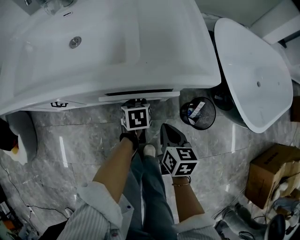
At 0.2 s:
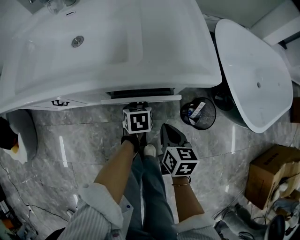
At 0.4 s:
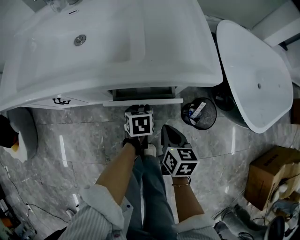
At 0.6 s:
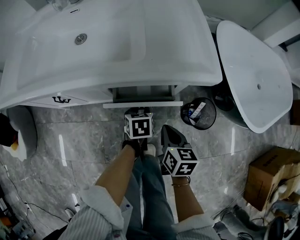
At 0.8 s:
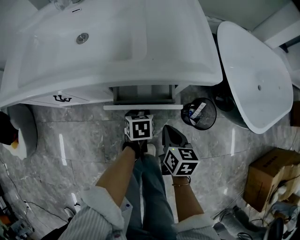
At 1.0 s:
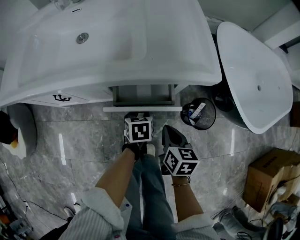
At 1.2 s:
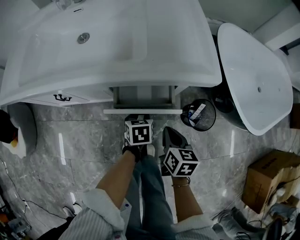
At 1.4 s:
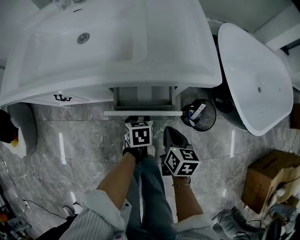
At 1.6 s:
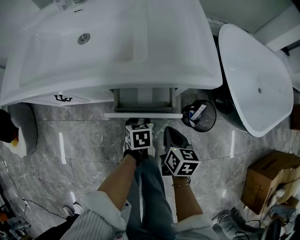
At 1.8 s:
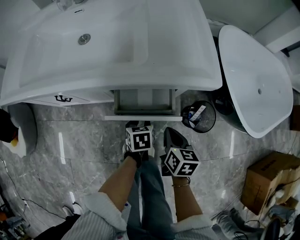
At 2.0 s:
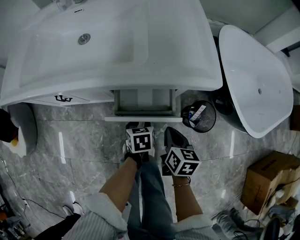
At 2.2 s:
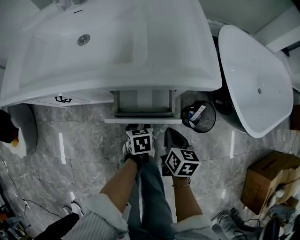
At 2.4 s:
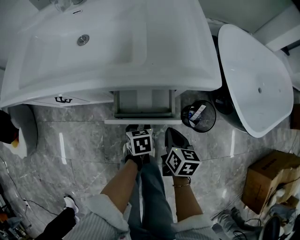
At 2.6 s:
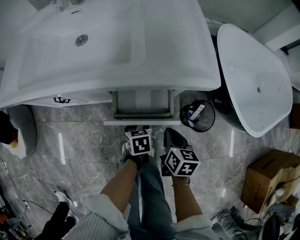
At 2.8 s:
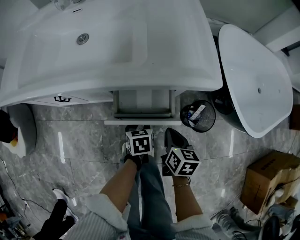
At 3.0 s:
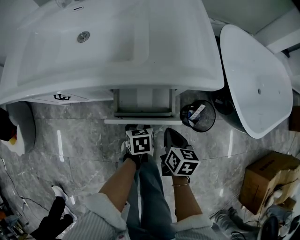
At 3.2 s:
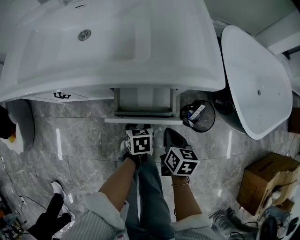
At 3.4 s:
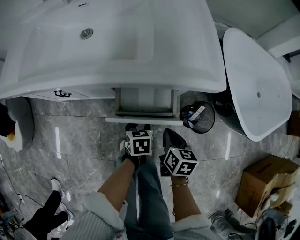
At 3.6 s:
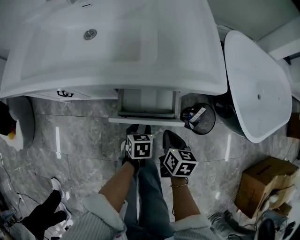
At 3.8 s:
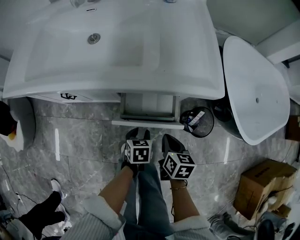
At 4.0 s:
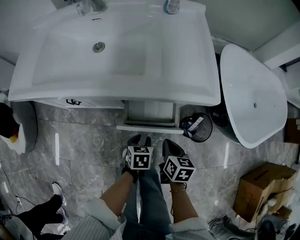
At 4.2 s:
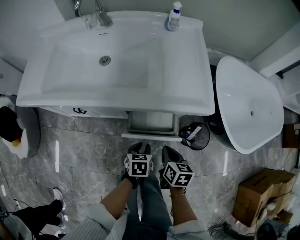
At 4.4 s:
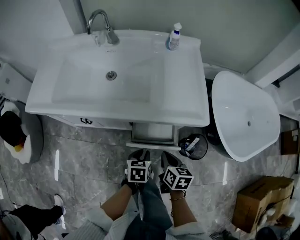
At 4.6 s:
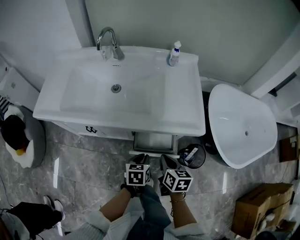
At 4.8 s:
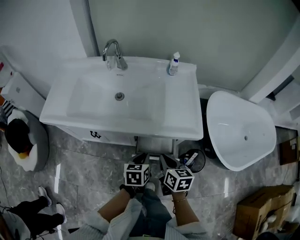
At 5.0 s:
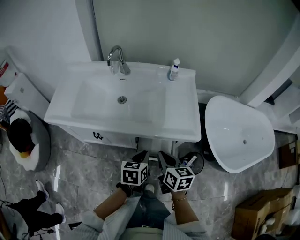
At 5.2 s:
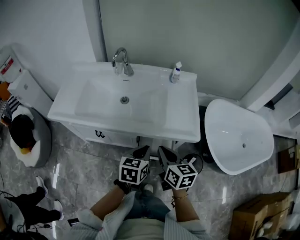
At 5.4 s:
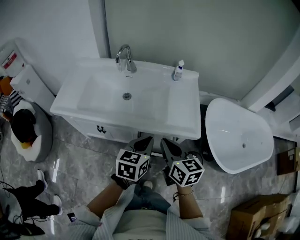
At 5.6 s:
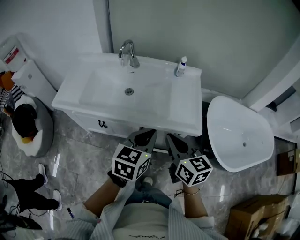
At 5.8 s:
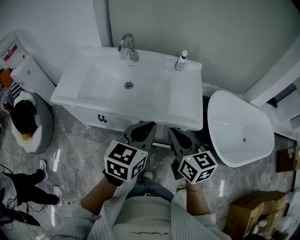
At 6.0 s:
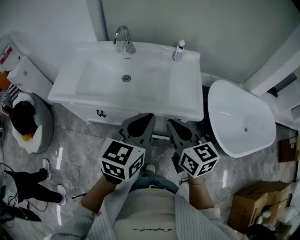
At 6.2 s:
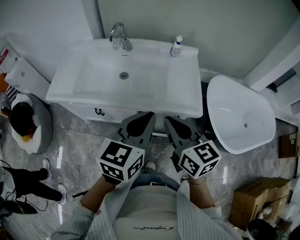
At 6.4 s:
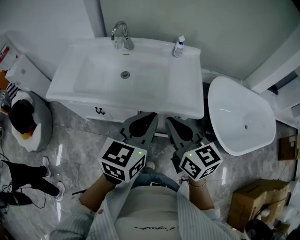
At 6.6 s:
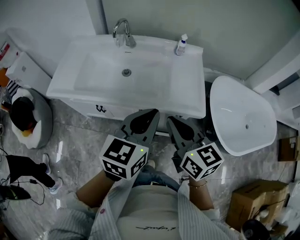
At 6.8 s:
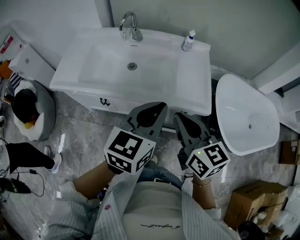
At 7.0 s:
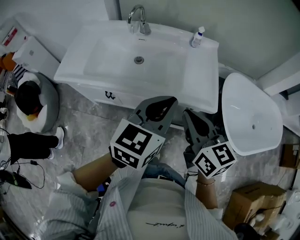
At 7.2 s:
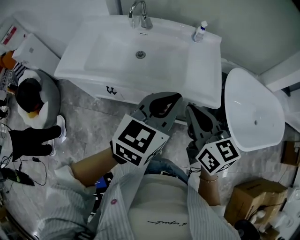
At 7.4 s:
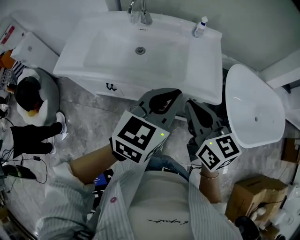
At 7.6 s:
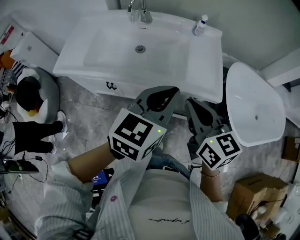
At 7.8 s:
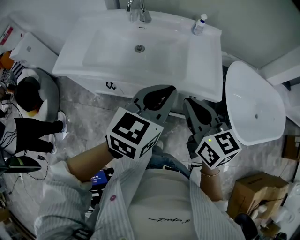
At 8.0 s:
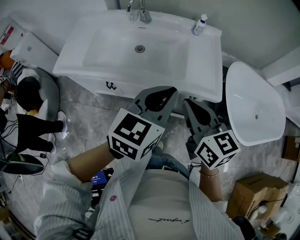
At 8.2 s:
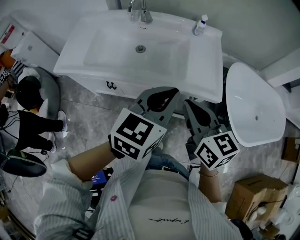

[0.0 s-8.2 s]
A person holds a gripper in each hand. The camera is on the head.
0.0 to 1.6 s: The left gripper goes some 10 cm backward.
1.6 to 3.2 s: There are only small adjustments of the grippers.
3.2 to 5.0 s: The two grippers go some 30 cm upward. The left gripper rotates approximately 20 degrees, and closes up; the right gripper changes its angle by some 20 degrees.
5.0 to 6.6 s: The grippers both shift upward by roughly 20 cm. The left gripper changes its angle by some 30 degrees; the right gripper swivels approximately 20 degrees.
6.6 to 8.2 s: The grippers move only a little.

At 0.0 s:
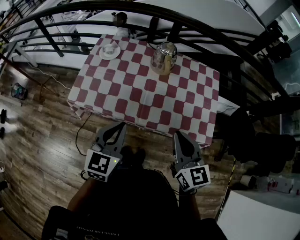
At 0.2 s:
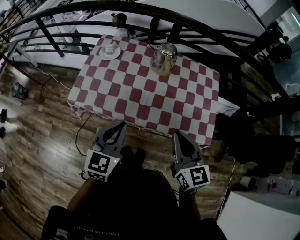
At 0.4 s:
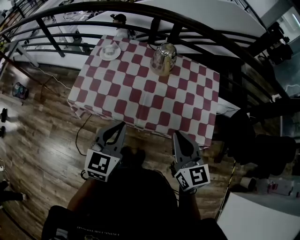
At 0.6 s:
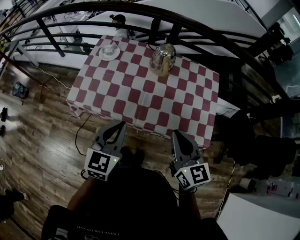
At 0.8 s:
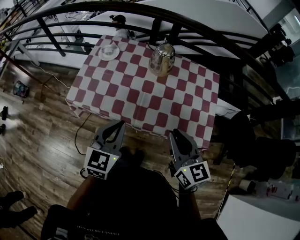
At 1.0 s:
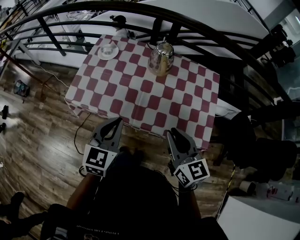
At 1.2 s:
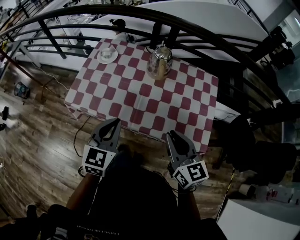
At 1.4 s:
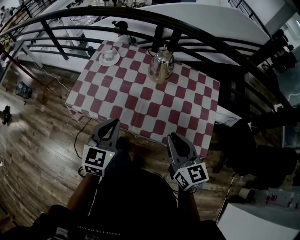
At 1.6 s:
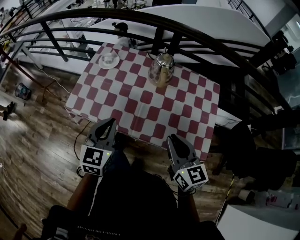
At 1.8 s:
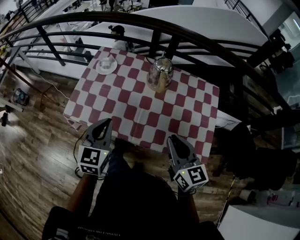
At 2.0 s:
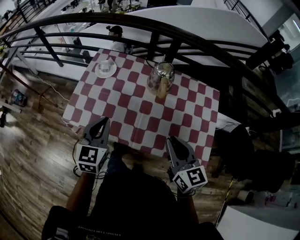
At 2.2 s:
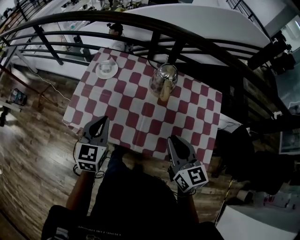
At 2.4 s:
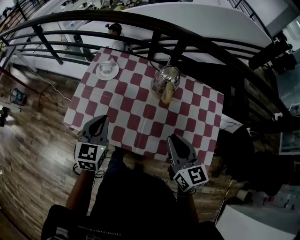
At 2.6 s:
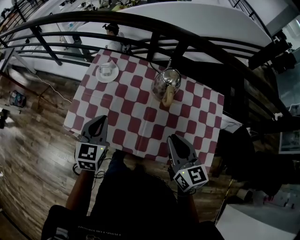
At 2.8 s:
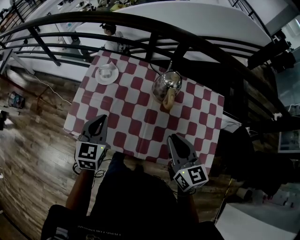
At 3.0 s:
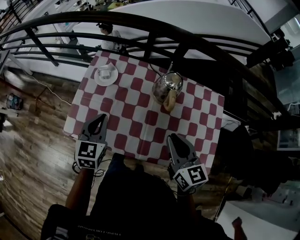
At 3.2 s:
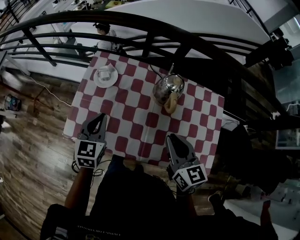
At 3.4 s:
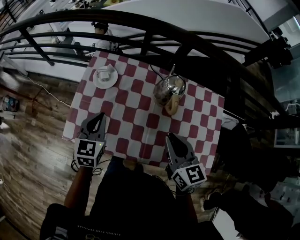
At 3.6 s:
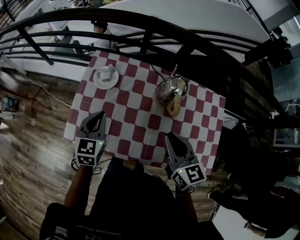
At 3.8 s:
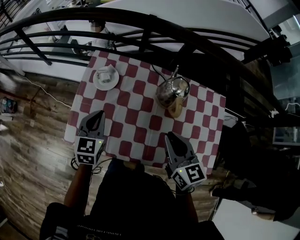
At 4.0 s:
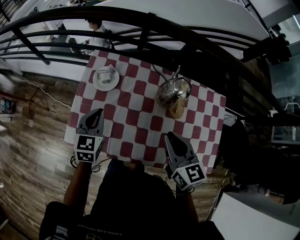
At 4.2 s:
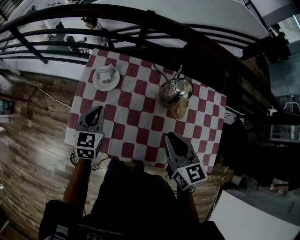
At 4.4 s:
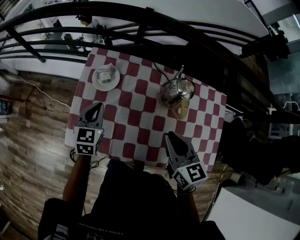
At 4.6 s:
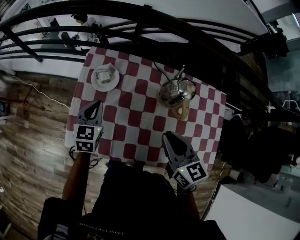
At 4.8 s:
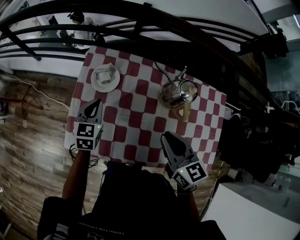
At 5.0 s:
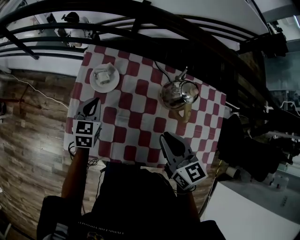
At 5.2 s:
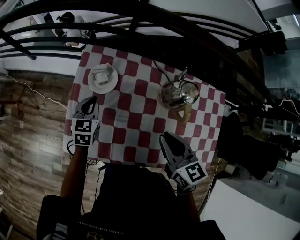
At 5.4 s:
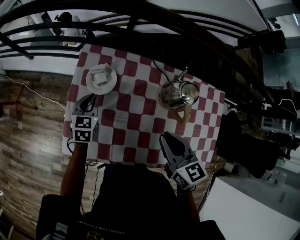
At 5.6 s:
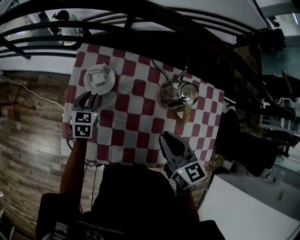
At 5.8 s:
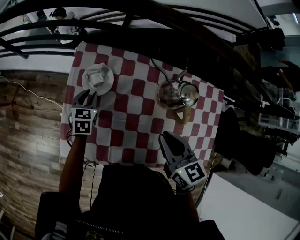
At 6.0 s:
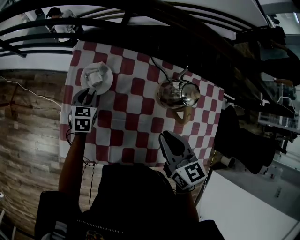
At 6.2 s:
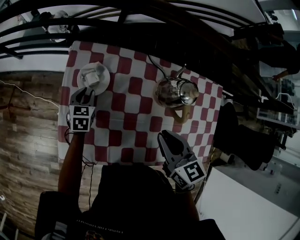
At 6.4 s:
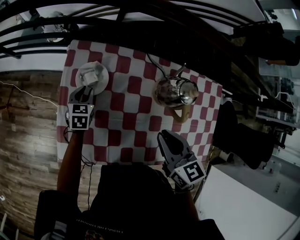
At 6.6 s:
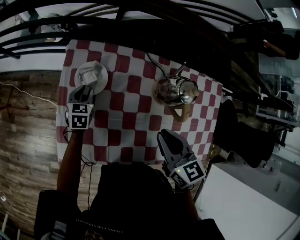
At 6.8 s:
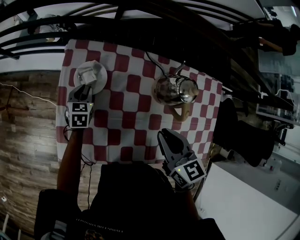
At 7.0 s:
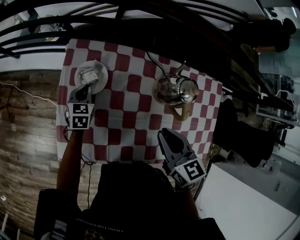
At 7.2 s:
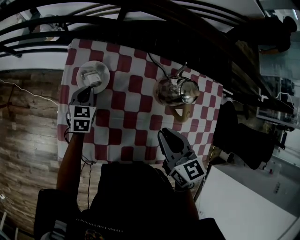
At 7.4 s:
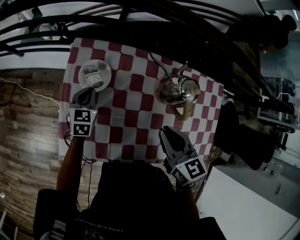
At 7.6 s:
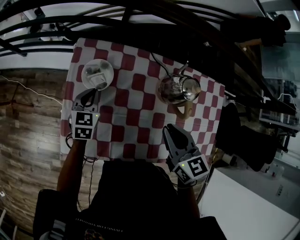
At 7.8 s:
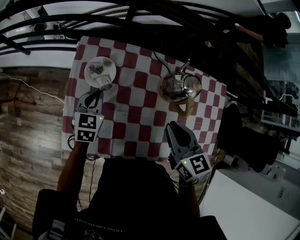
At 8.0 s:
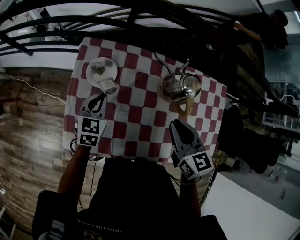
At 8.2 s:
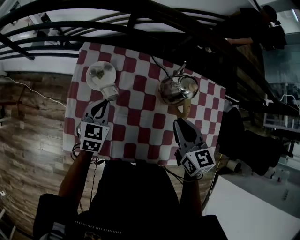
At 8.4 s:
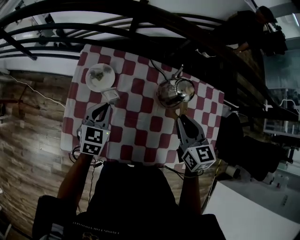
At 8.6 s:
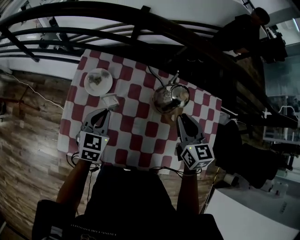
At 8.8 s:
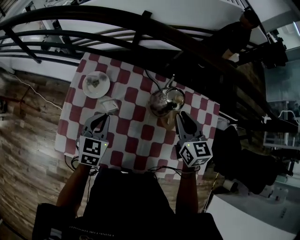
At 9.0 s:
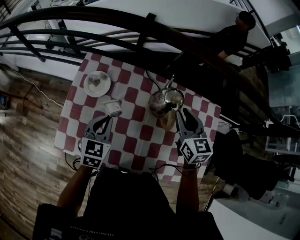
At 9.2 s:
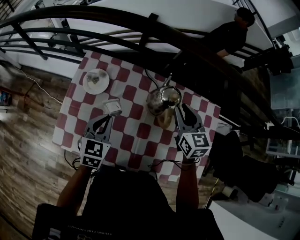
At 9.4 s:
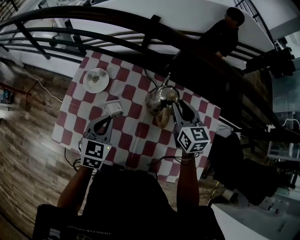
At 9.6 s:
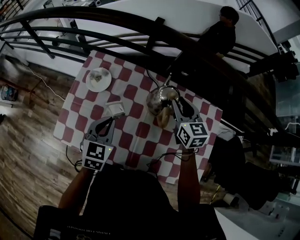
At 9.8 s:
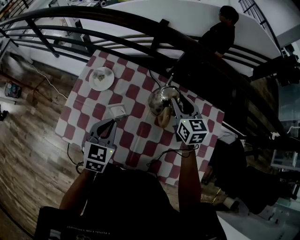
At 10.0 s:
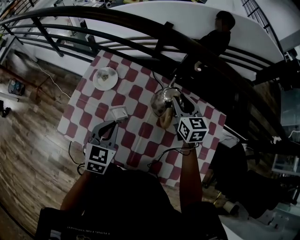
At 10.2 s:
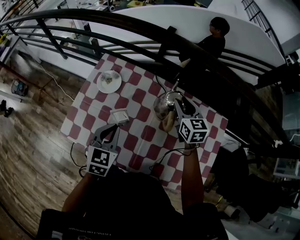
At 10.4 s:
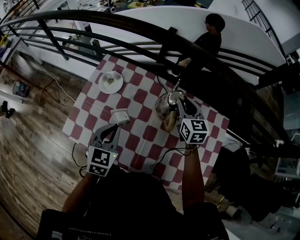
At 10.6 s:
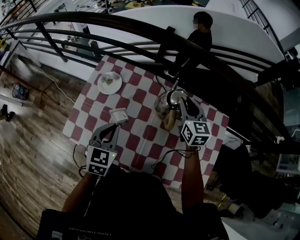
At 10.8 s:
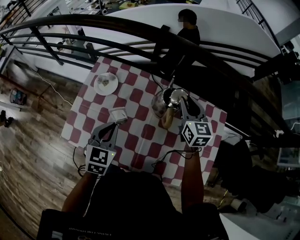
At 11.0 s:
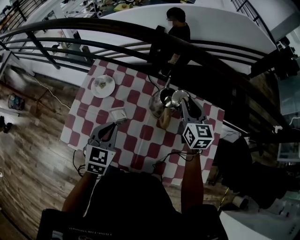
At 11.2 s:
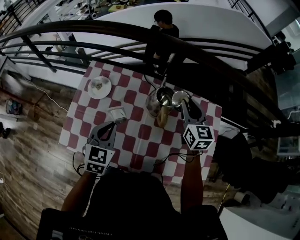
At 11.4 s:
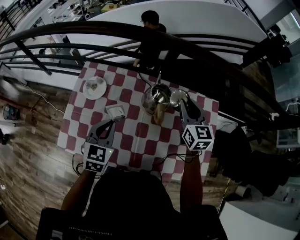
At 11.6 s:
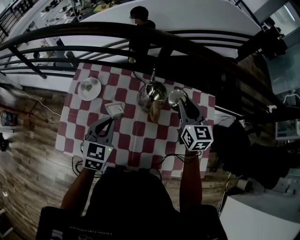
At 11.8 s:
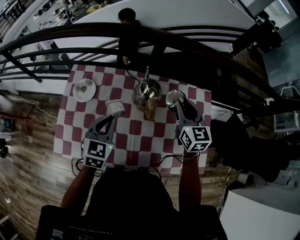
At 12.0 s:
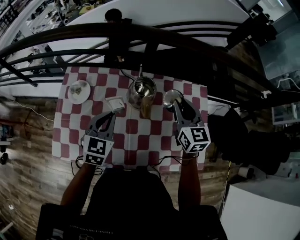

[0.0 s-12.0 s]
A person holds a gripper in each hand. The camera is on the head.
0.0 to 1.6 s: The left gripper moves forward, about 5 cm; the right gripper shifts by about 5 cm.
1.6 to 3.0 s: The left gripper heads forward and to the left, covering approximately 20 cm. Meanwhile the right gripper heads forward, covering roughly 15 cm.
3.0 to 4.4 s: The left gripper travels forward, downward and to the left by roughly 15 cm. Meanwhile the right gripper heads forward and to the left, covering roughly 10 cm.
4.4 to 6.0 s: The right gripper heads forward, covering some 5 cm; the left gripper moves downward and forward, approximately 20 cm, and opens.
6.0 to 7.6 s: The left gripper travels upward by about 5 cm, and closes.
7.6 to 9.0 s: The left gripper is displaced to the right, upward and backward by approximately 20 cm. The right gripper travels to the right and forward by approximately 15 cm.
9.0 to 10.4 s: The left gripper travels backward by about 5 cm, while the right gripper moves forward, some 5 cm.
10.4 to 12.0 s: The right gripper travels to the right, backward and upward by about 15 cm, while the left gripper goes approximately 10 cm to the right and forward.

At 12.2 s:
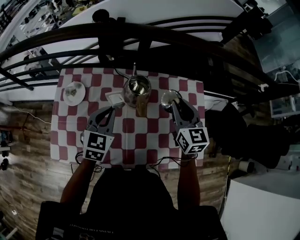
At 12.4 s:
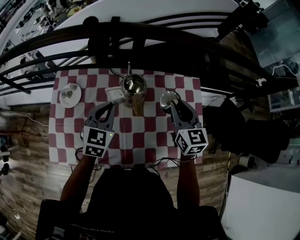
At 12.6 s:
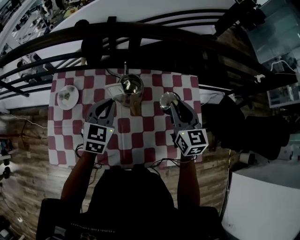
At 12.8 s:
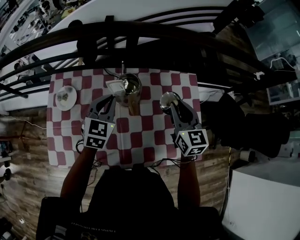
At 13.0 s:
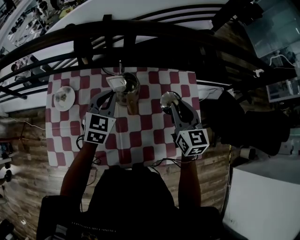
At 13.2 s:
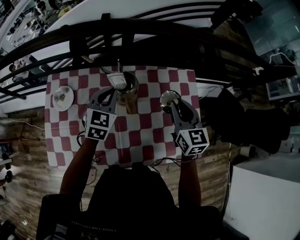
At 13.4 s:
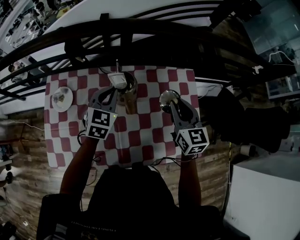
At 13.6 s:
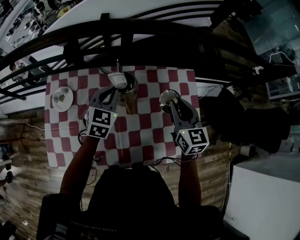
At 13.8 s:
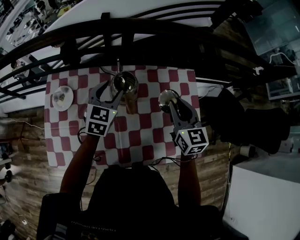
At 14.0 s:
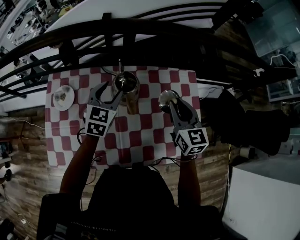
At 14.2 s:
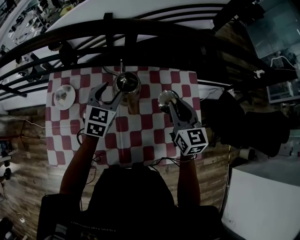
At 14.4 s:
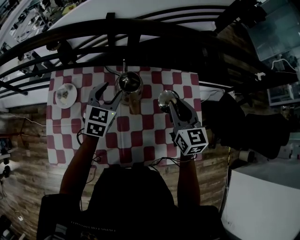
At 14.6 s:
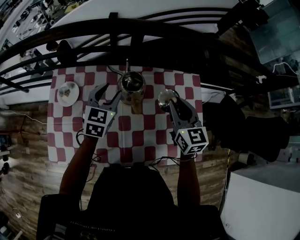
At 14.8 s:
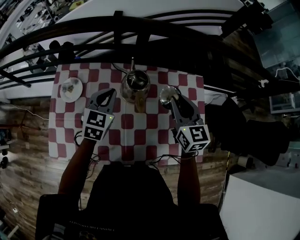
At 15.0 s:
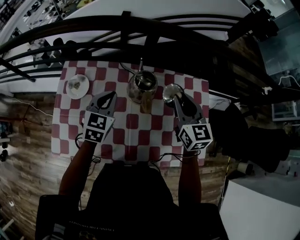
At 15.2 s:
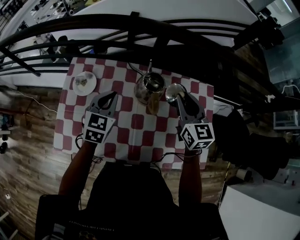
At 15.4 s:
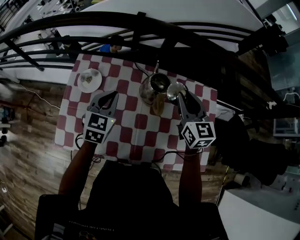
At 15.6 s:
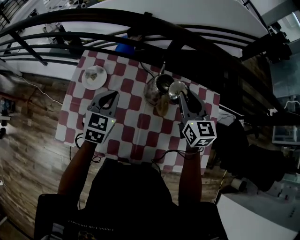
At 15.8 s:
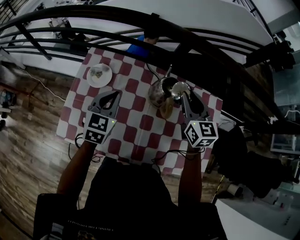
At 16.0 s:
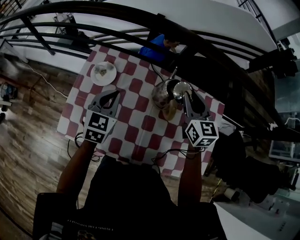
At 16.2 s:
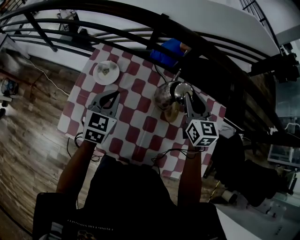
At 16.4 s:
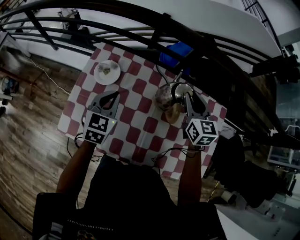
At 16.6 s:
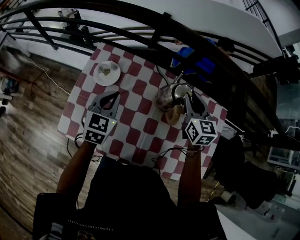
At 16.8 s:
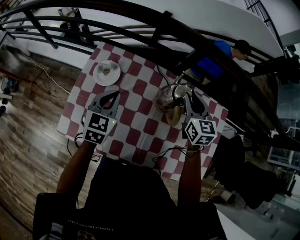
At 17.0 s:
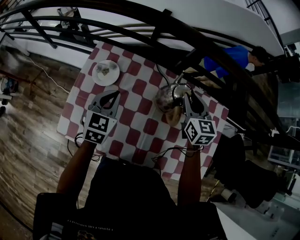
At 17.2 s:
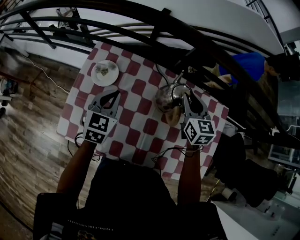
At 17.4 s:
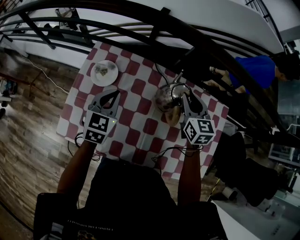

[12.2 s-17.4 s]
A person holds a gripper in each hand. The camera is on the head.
12.2 to 14.0 s: The left gripper heads forward and to the right, covering about 10 cm, and opens up.
14.0 to 15.6 s: The left gripper moves to the left and backward, roughly 15 cm, and closes, while the right gripper moves to the left and forward, approximately 15 cm.
15.6 to 17.4 s: The left gripper shifts by about 5 cm; the right gripper travels downward and forward by some 10 cm.
